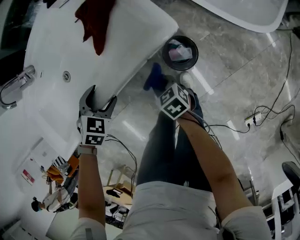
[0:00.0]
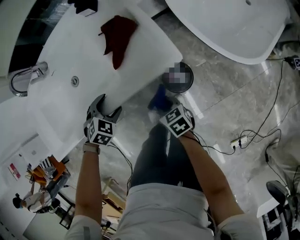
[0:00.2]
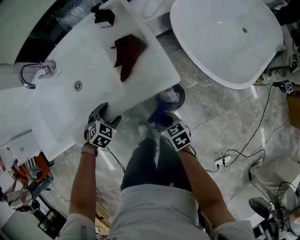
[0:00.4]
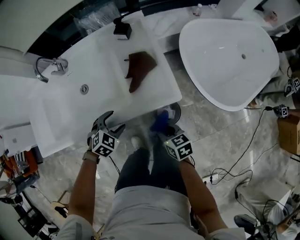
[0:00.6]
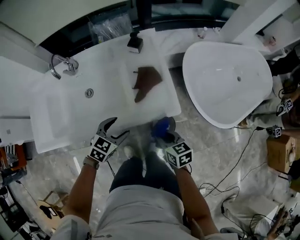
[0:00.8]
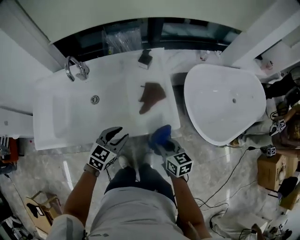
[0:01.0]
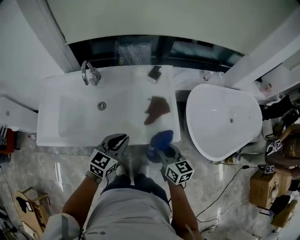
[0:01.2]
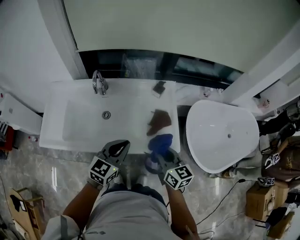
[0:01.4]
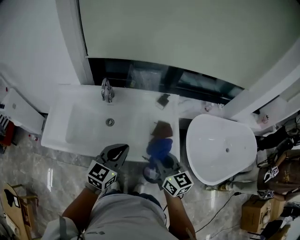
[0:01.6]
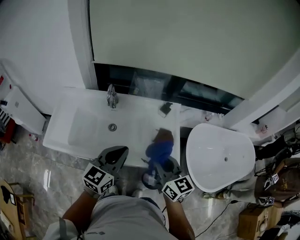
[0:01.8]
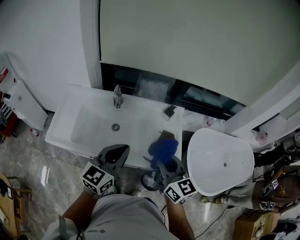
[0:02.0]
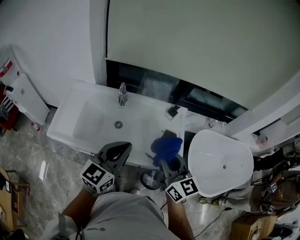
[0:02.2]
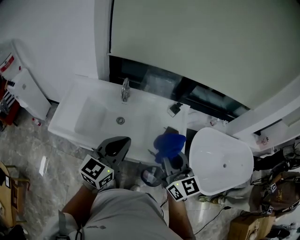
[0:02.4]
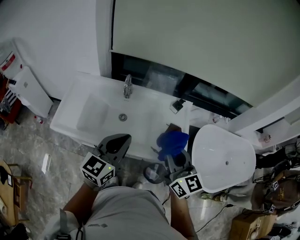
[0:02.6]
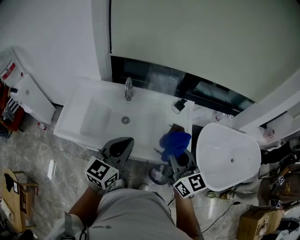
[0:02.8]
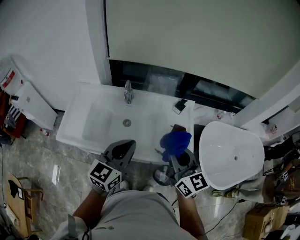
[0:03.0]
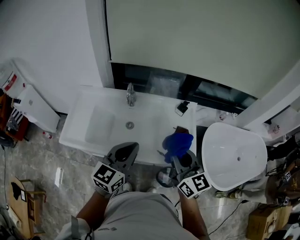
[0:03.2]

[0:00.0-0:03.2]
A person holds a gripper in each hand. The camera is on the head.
0:00.0 to 0:01.6: The grippers both shift upward by roughly 40 cm. The right gripper angles its fingers upward, by some 40 degrees; the left gripper points its fingers about 60 degrees further upward, and closes its fingers.
0:01.6 to 0:03.2: The left gripper is displaced upward and to the left by some 10 cm. Meanwhile the right gripper goes approximately 10 cm upward.

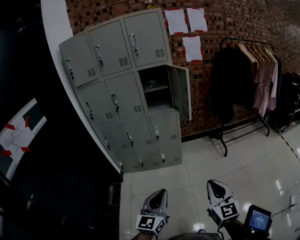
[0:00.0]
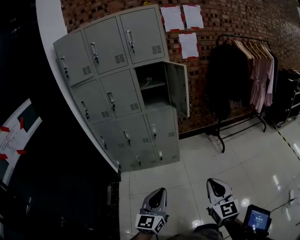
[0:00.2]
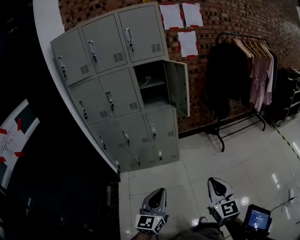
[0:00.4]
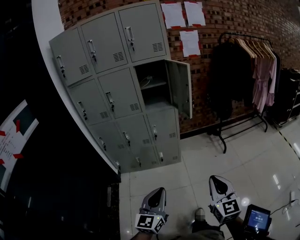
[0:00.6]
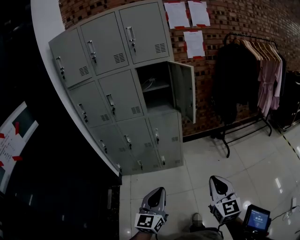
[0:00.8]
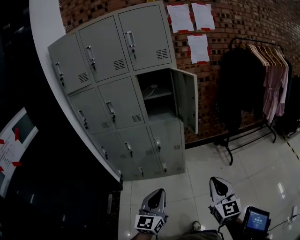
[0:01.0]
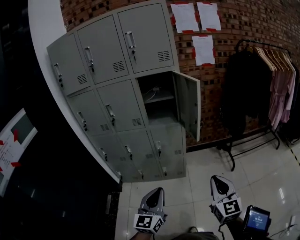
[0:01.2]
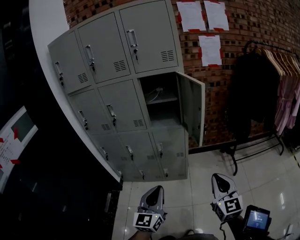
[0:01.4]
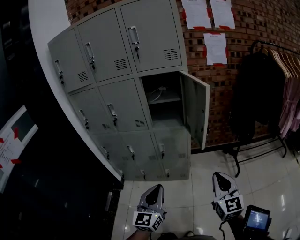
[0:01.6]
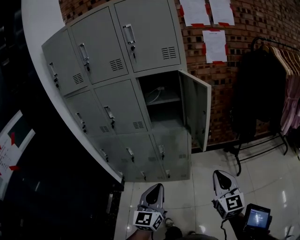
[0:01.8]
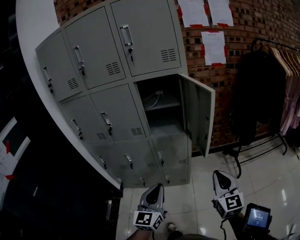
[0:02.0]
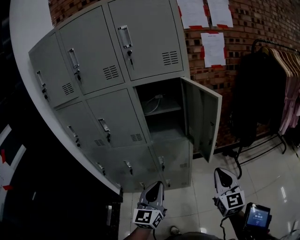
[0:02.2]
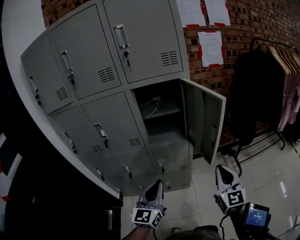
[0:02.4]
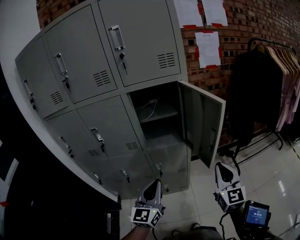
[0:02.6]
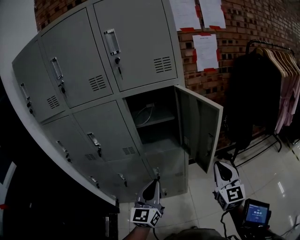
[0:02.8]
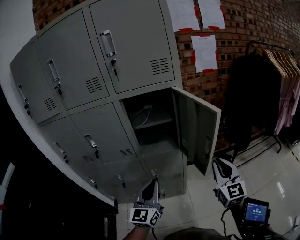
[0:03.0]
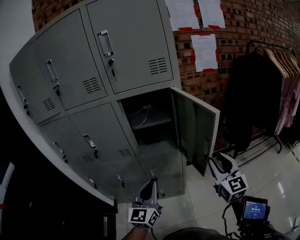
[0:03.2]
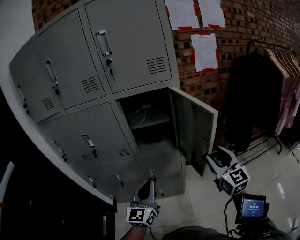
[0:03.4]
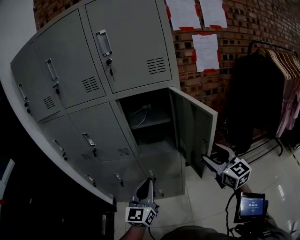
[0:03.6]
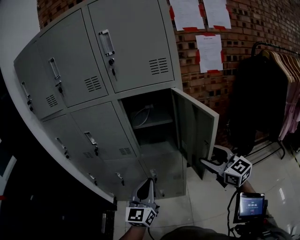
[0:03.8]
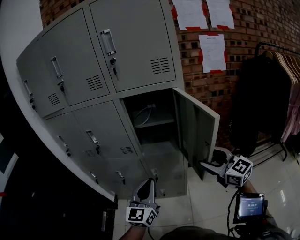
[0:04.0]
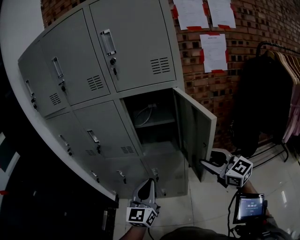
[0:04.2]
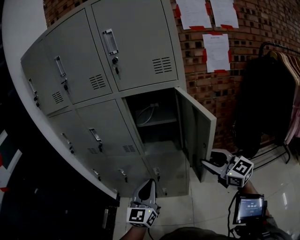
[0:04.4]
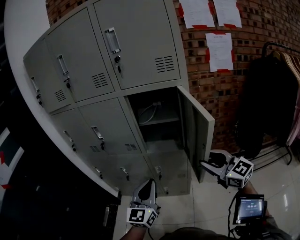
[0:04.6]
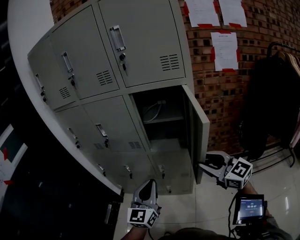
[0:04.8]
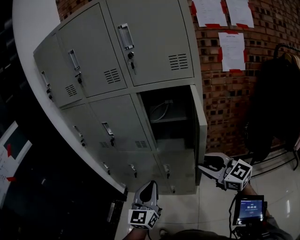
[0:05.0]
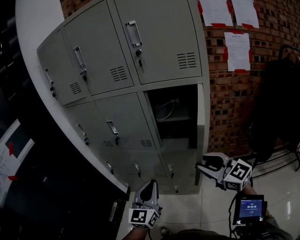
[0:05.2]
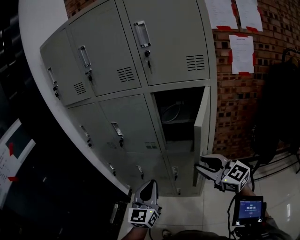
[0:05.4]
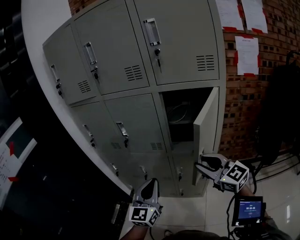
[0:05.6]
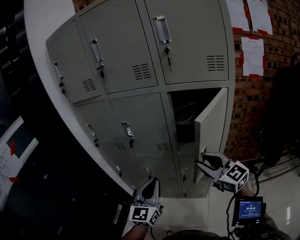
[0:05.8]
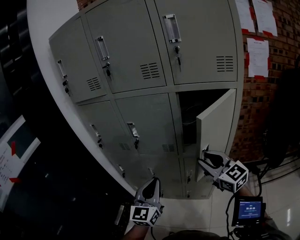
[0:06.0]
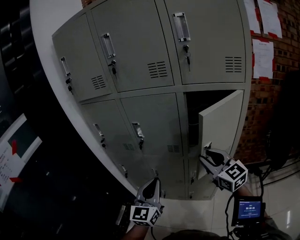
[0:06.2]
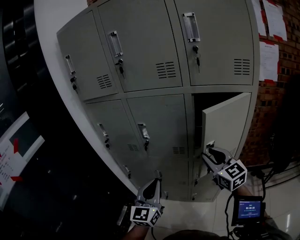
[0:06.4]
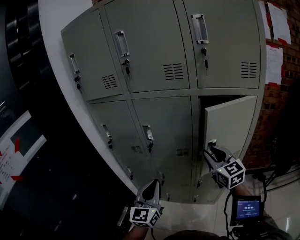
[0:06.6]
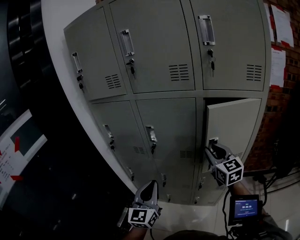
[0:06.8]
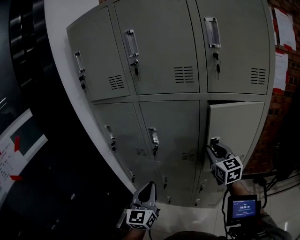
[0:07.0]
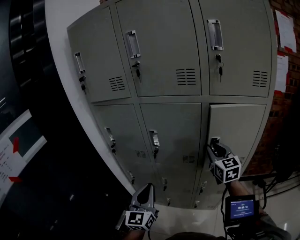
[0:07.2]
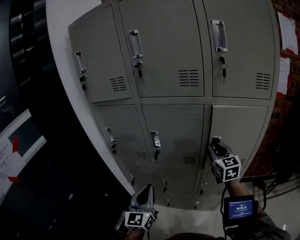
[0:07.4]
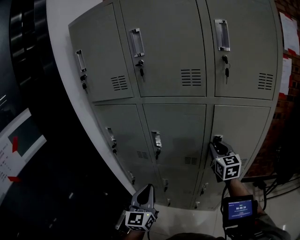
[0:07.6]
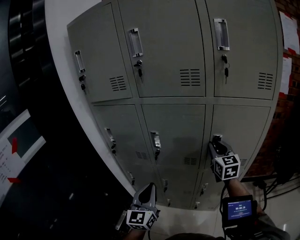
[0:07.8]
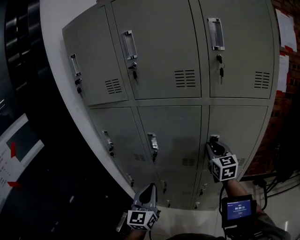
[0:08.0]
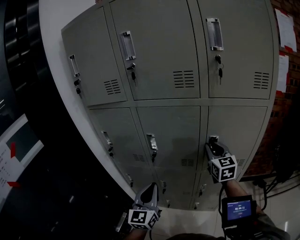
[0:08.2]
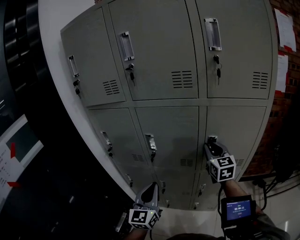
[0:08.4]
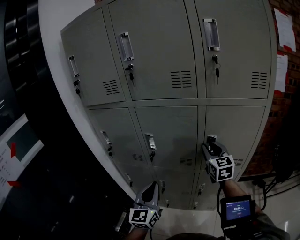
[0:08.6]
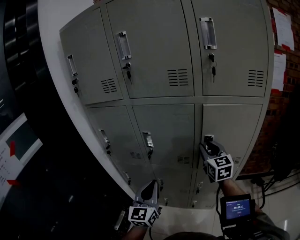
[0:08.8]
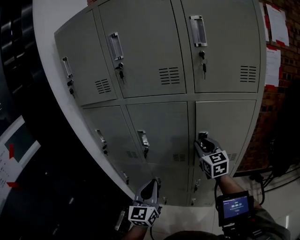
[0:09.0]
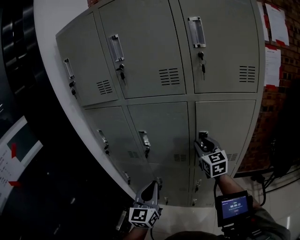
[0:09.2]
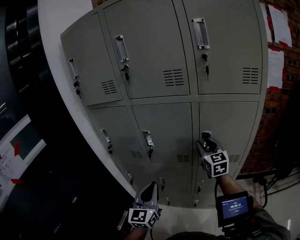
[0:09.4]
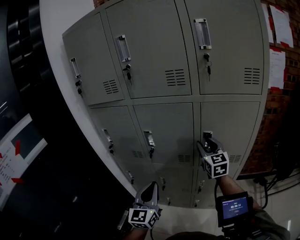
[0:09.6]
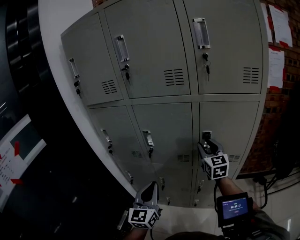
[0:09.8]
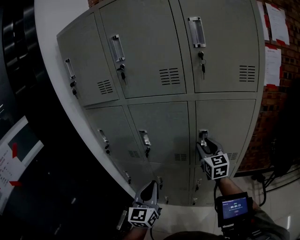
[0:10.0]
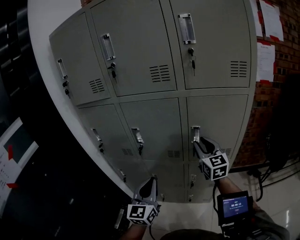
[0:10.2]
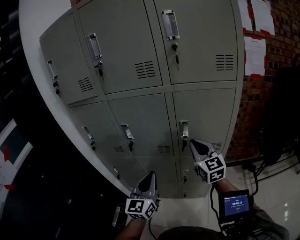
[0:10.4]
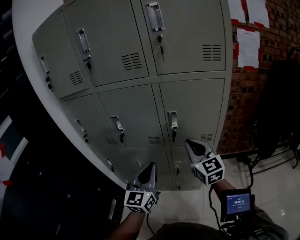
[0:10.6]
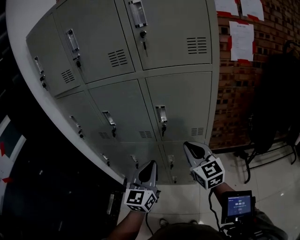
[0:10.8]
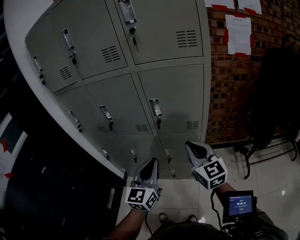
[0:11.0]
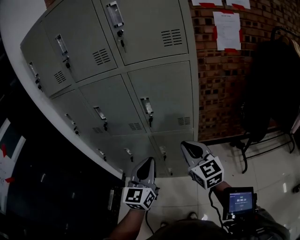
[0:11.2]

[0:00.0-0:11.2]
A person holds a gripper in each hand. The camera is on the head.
0:00.0 to 0:01.6: Both grippers move forward, some 35 cm.
0:01.6 to 0:03.2: Both grippers move forward, roughly 25 cm. The right gripper opens up.
0:03.2 to 0:04.8: The right gripper moves some 5 cm, rotates some 50 degrees, and opens, then closes again.
0:04.8 to 0:06.4: The right gripper travels forward and to the left by about 25 cm. Meanwhile the left gripper heads to the left and forward, covering approximately 20 cm.
0:06.4 to 0:08.0: The right gripper shifts roughly 15 cm forward. Meanwhile the left gripper shifts about 10 cm to the left and forward.
0:08.0 to 0:09.6: The grippers move only a little.
0:09.6 to 0:11.2: The right gripper shifts about 30 cm backward and to the right, and closes up. Meanwhile the left gripper is displaced to the right by some 25 cm.

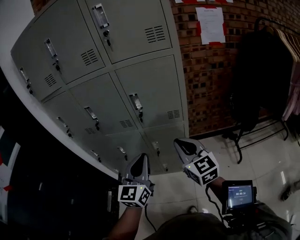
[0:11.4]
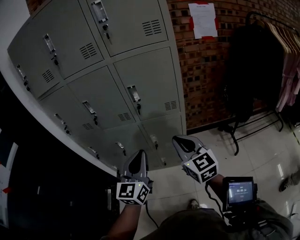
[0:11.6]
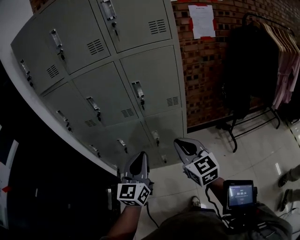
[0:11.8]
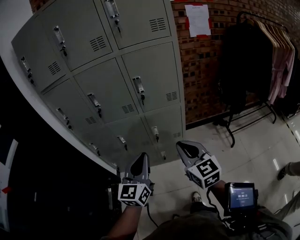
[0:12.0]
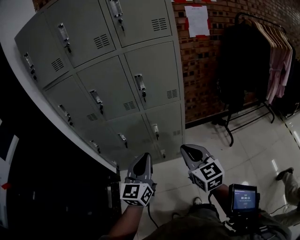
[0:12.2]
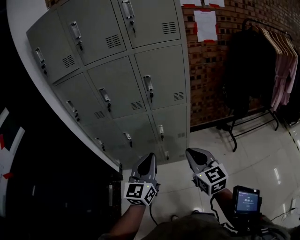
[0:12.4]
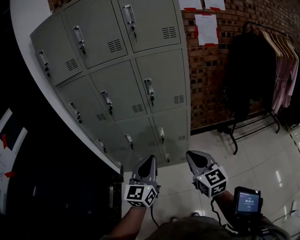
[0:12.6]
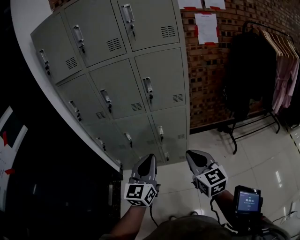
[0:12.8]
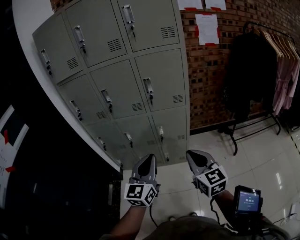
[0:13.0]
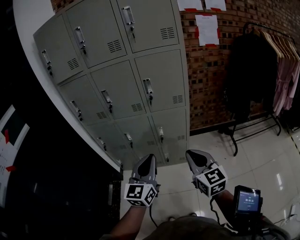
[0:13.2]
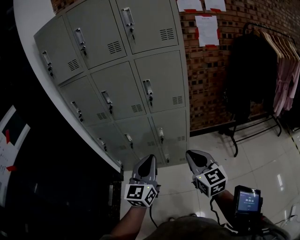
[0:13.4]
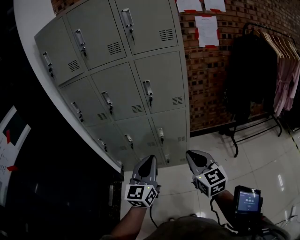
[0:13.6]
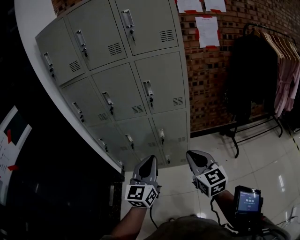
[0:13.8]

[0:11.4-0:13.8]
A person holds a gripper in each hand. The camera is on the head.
0:11.4 to 0:12.6: The left gripper heads backward and to the left, covering approximately 15 cm. Meanwhile the right gripper heads backward, covering some 20 cm.
0:12.6 to 0:13.8: There are only small adjustments of the grippers.

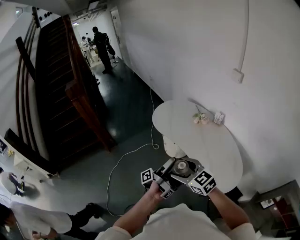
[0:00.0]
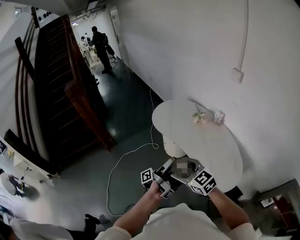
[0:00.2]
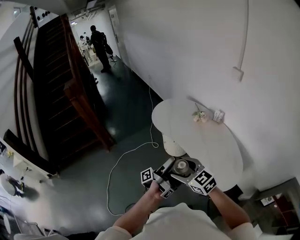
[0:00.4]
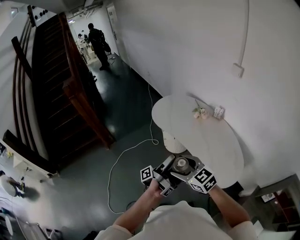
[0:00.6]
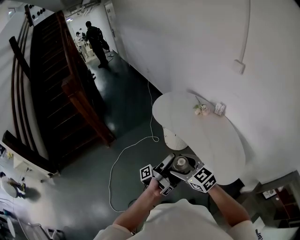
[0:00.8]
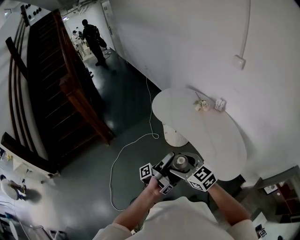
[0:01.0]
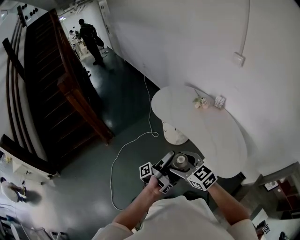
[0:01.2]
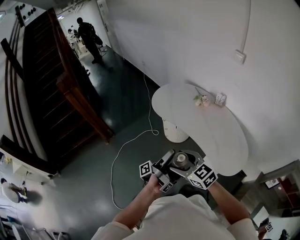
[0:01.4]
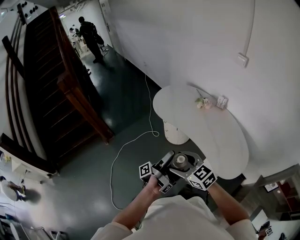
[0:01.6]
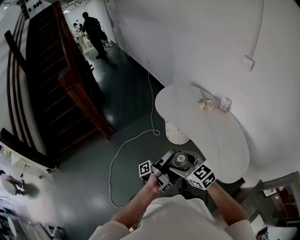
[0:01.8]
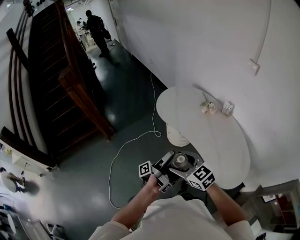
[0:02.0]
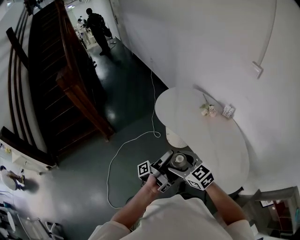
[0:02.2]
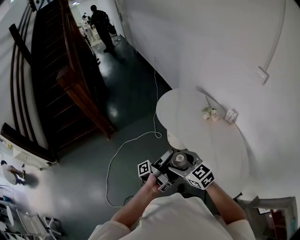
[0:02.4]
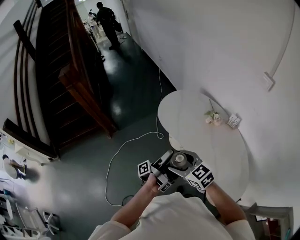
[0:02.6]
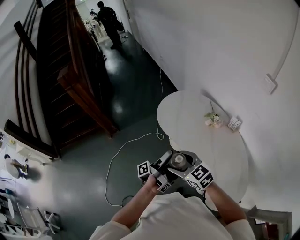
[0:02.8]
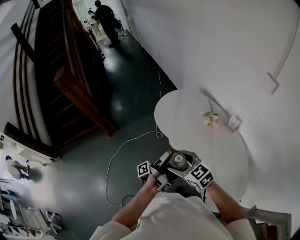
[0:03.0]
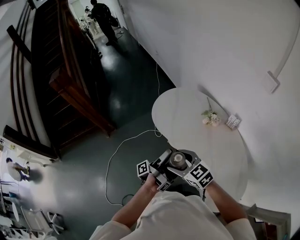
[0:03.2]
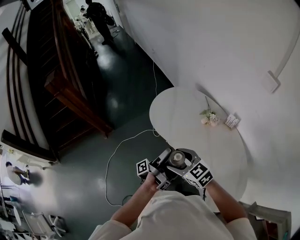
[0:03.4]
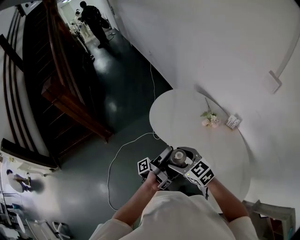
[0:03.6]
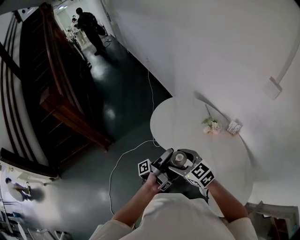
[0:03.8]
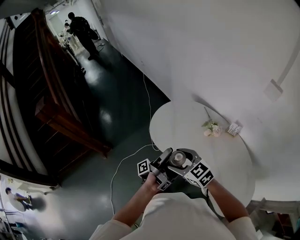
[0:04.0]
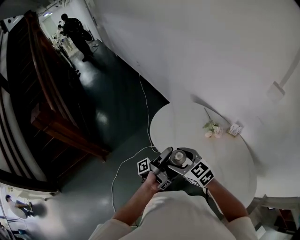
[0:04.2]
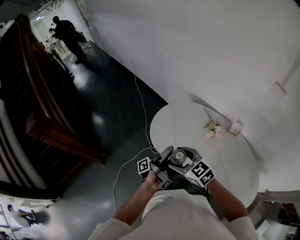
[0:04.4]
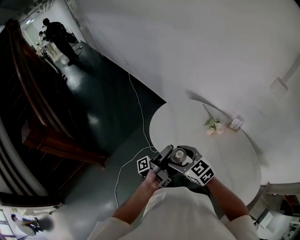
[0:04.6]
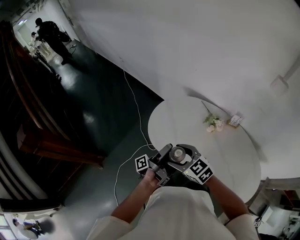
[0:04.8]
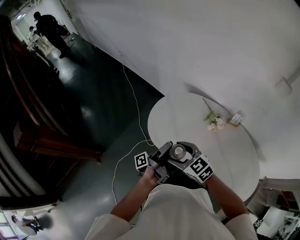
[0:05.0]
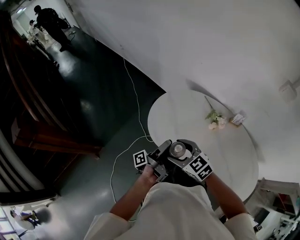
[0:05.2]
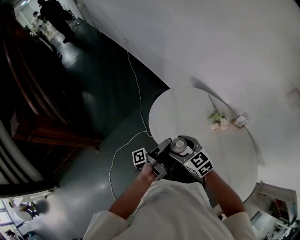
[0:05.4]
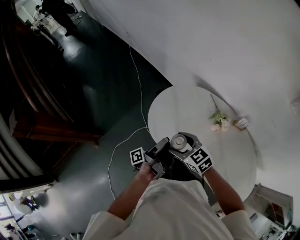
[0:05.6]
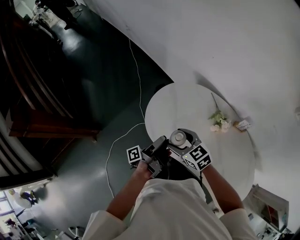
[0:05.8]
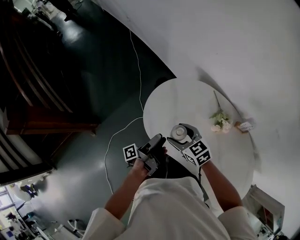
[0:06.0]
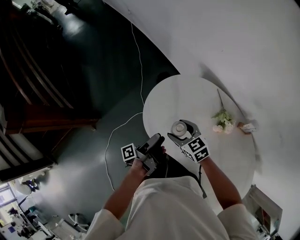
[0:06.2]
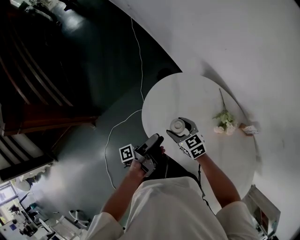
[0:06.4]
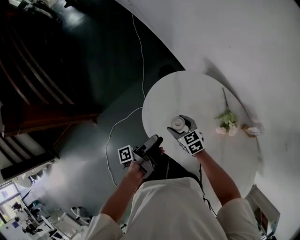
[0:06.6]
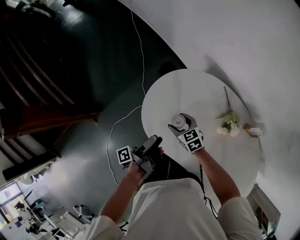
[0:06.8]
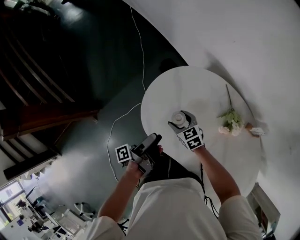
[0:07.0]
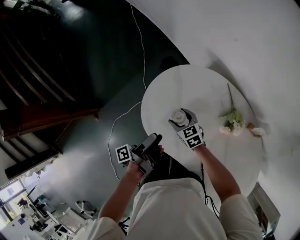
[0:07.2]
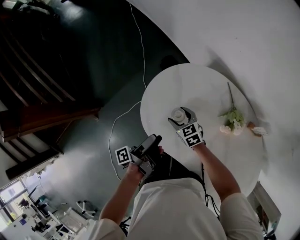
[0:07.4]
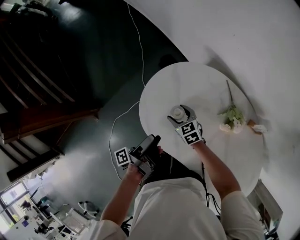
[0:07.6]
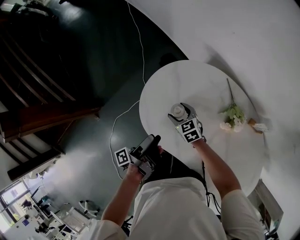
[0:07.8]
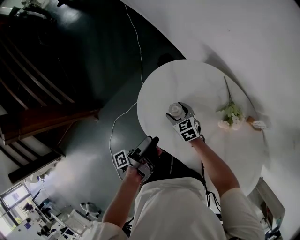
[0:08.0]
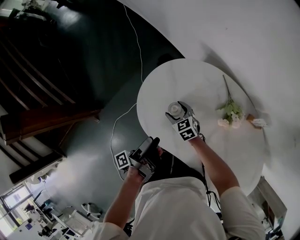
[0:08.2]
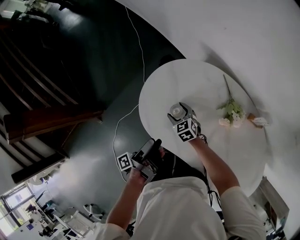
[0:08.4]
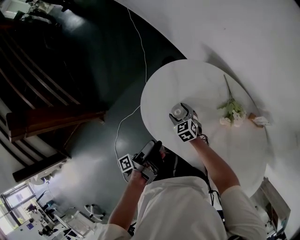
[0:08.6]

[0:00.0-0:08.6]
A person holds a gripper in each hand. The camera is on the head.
0:00.0 to 0:01.4: The right gripper shifts by approximately 10 cm.
0:01.4 to 0:02.8: The right gripper changes place by about 20 cm.
0:02.8 to 0:04.4: The right gripper changes place by about 25 cm.
0:04.4 to 0:05.8: The right gripper moves approximately 20 cm.
0:05.8 to 0:07.2: The right gripper moves downward, about 25 cm.
